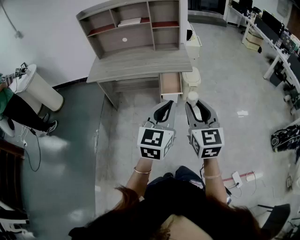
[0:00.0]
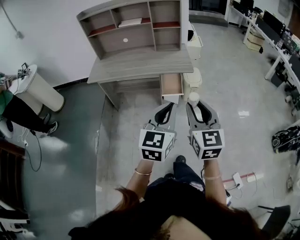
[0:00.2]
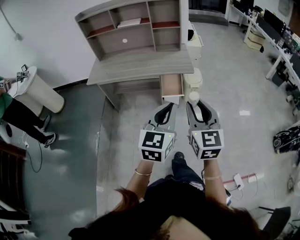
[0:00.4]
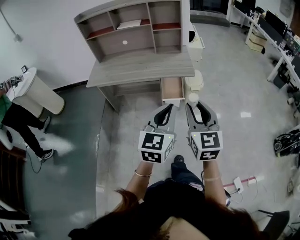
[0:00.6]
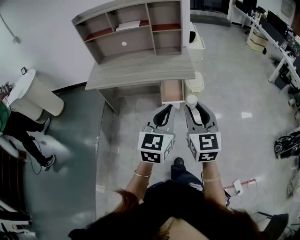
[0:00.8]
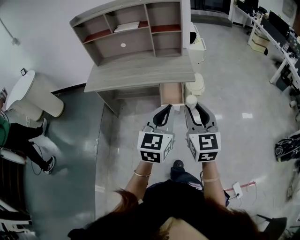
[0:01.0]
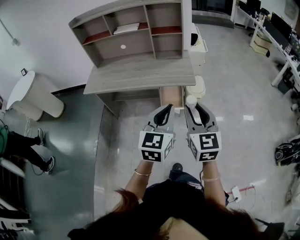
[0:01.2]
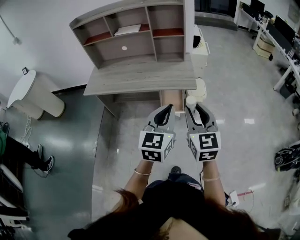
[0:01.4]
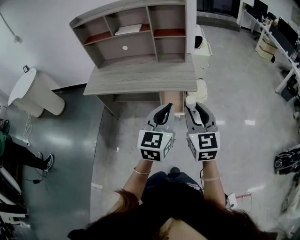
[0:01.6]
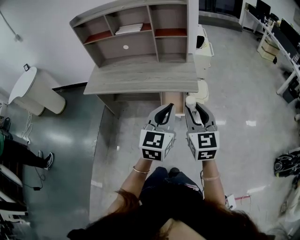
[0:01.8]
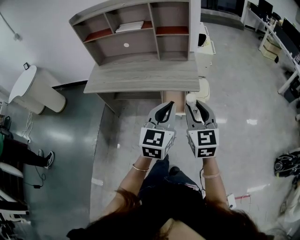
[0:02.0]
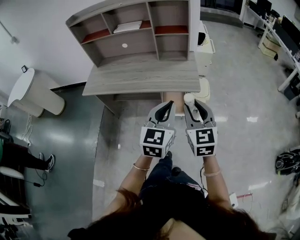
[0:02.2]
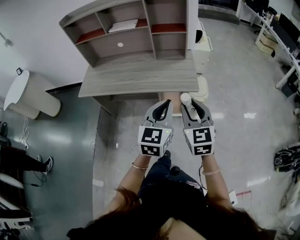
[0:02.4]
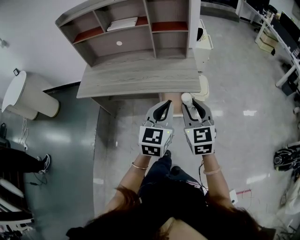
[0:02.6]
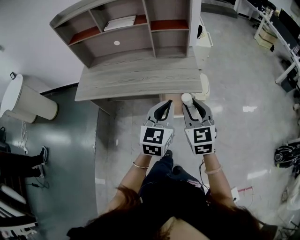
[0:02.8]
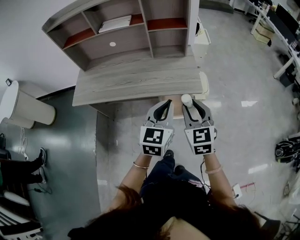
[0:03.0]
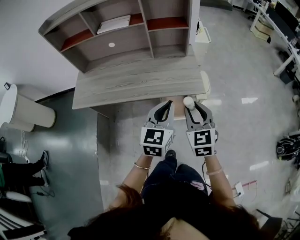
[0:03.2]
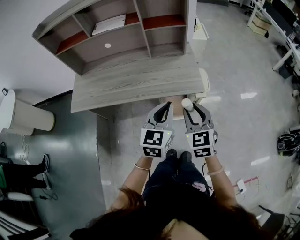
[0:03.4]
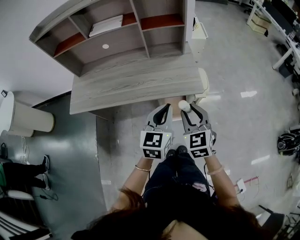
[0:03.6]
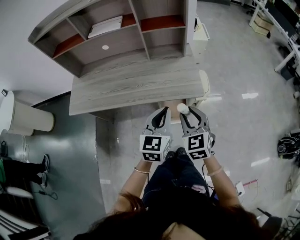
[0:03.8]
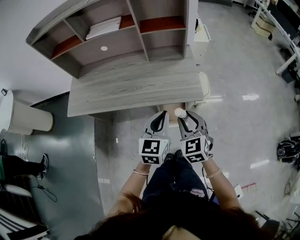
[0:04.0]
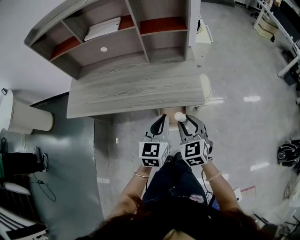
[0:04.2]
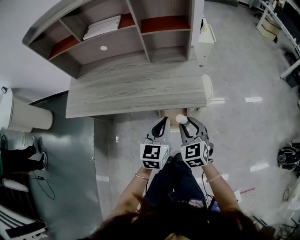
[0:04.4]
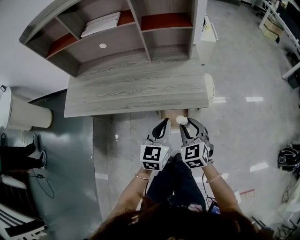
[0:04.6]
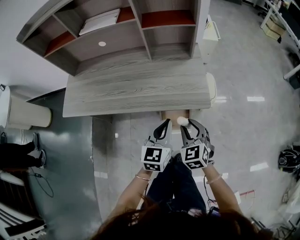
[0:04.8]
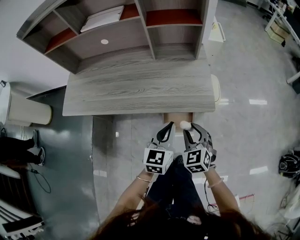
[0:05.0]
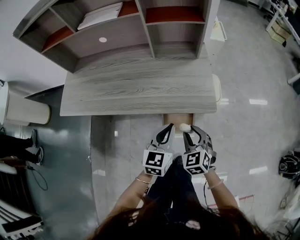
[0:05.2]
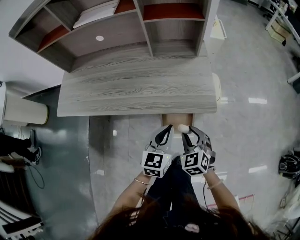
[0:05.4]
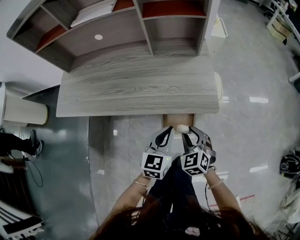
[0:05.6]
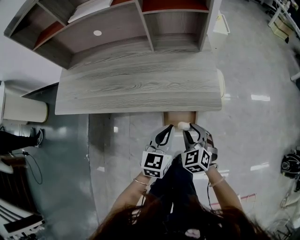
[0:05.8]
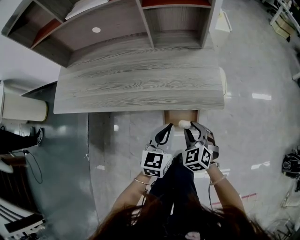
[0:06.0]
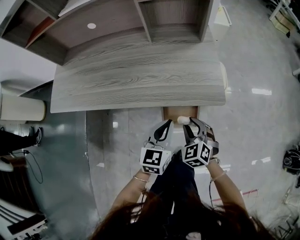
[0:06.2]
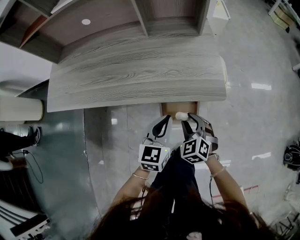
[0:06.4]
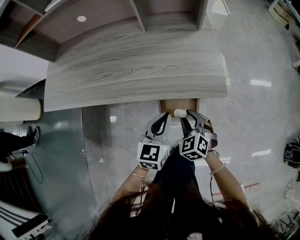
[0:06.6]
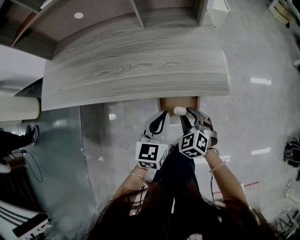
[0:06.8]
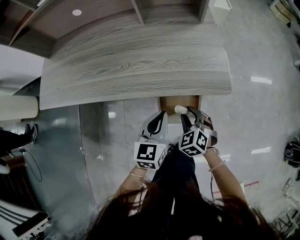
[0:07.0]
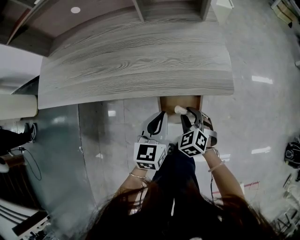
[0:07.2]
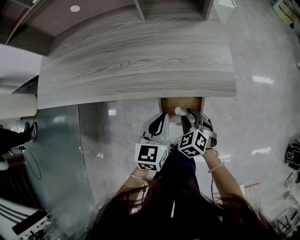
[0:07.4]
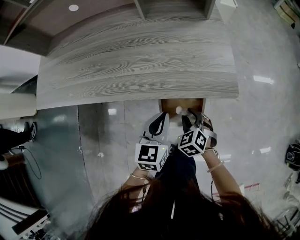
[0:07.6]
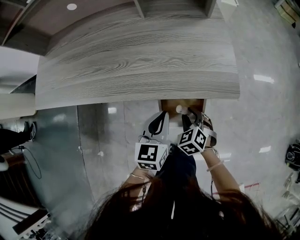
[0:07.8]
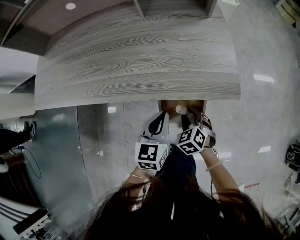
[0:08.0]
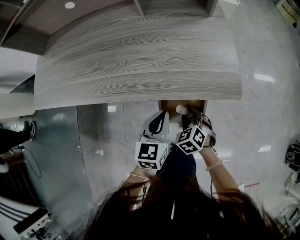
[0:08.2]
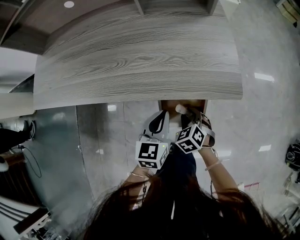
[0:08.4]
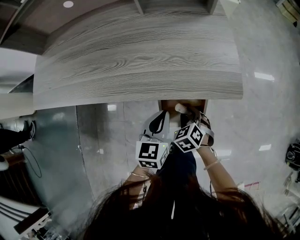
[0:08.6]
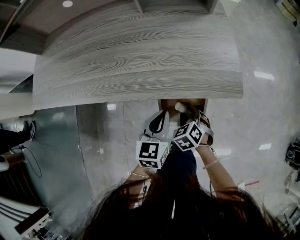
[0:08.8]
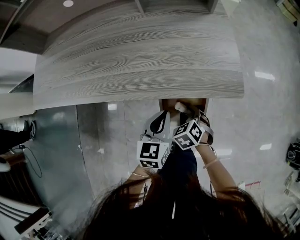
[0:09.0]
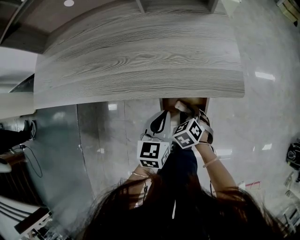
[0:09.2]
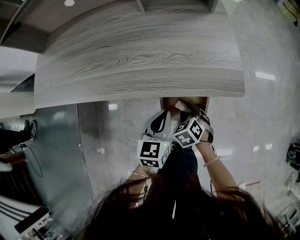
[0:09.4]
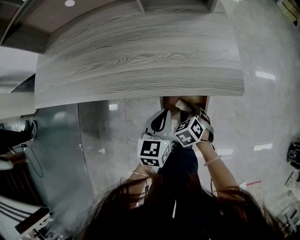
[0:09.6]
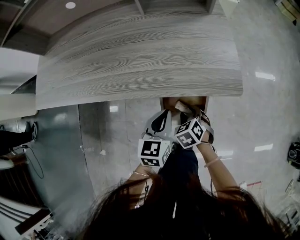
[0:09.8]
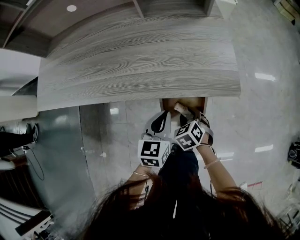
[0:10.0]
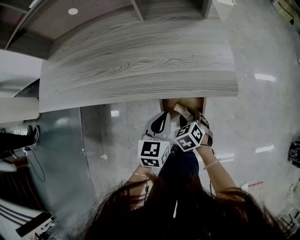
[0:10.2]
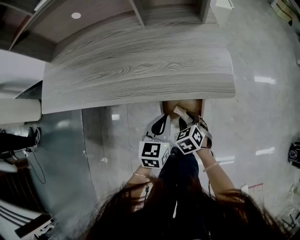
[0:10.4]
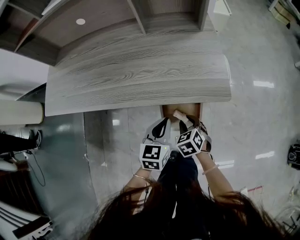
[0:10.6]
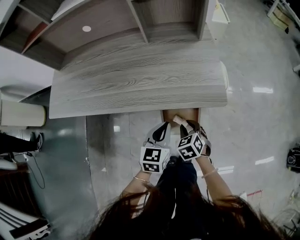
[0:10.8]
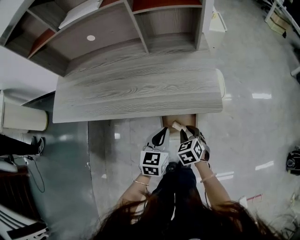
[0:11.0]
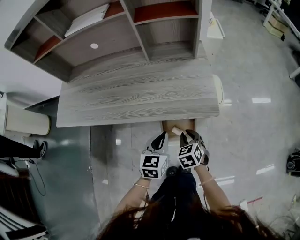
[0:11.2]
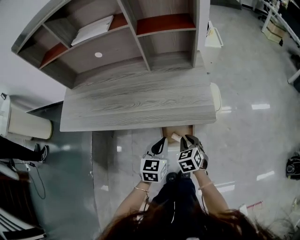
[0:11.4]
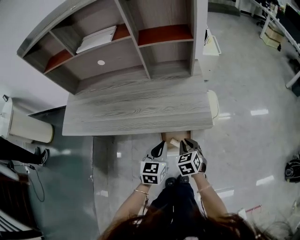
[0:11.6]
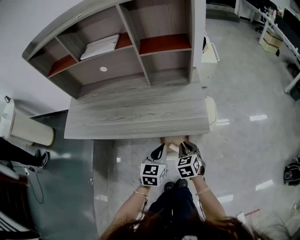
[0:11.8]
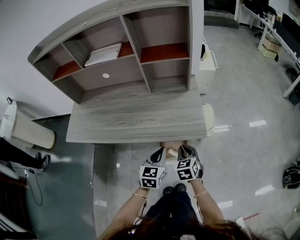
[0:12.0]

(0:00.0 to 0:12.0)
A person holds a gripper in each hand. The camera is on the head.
0:00.0 - 0:01.6: Both grippers travel together forward, approximately 20 cm.
0:01.6 - 0:03.0: The two grippers go roughly 15 cm forward and downward.
0:03.0 - 0:04.4: Both grippers travel together downward and forward, about 15 cm.
0:04.4 - 0:06.0: The grippers both shift downward by some 15 cm.
0:06.0 - 0:07.6: The left gripper heads downward, covering some 10 cm. The right gripper is displaced downward by some 15 cm.
0:07.6 - 0:10.4: The grippers move only a little.
0:10.4 - 0:12.0: Both grippers move upward, approximately 20 cm. The right gripper turns by approximately 20 degrees, and closes.

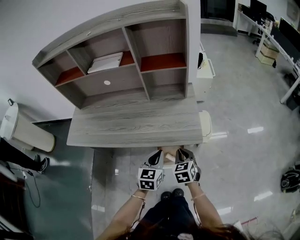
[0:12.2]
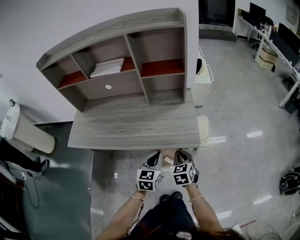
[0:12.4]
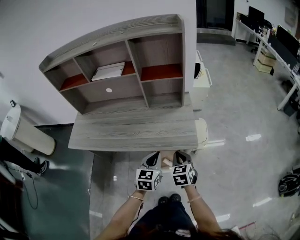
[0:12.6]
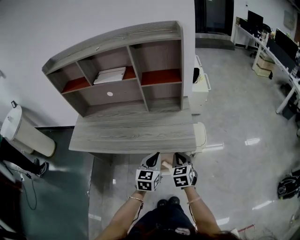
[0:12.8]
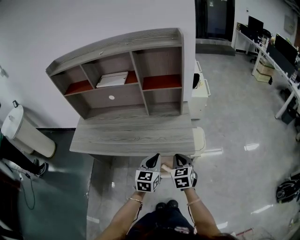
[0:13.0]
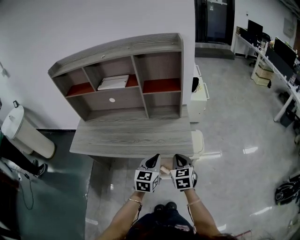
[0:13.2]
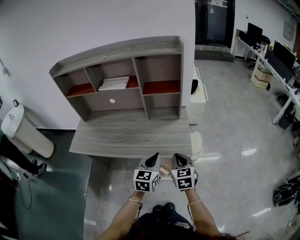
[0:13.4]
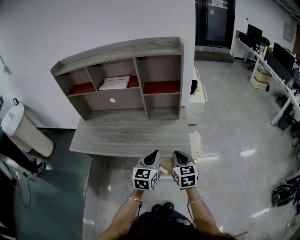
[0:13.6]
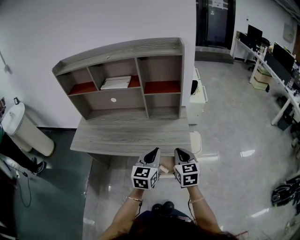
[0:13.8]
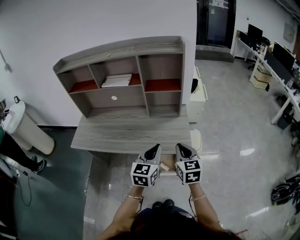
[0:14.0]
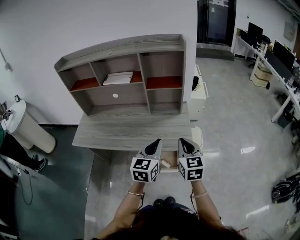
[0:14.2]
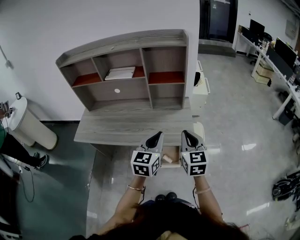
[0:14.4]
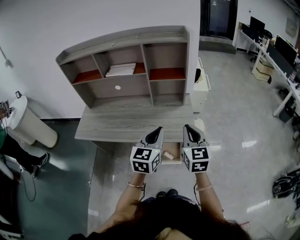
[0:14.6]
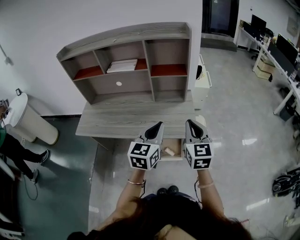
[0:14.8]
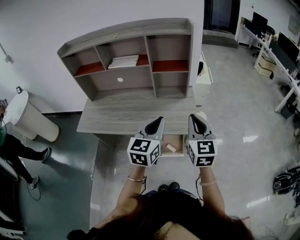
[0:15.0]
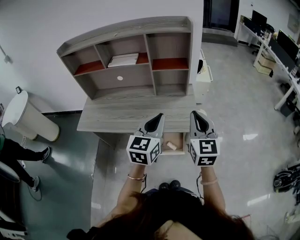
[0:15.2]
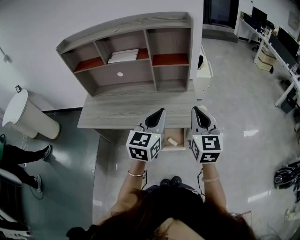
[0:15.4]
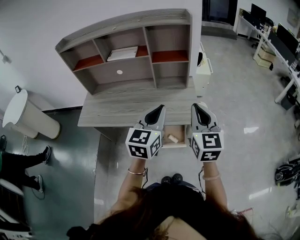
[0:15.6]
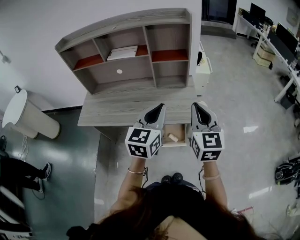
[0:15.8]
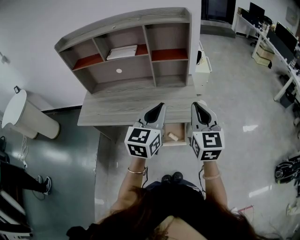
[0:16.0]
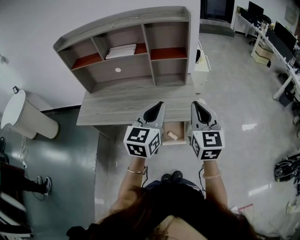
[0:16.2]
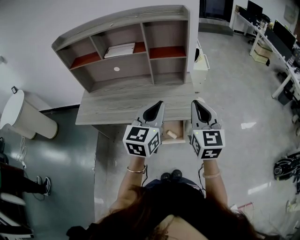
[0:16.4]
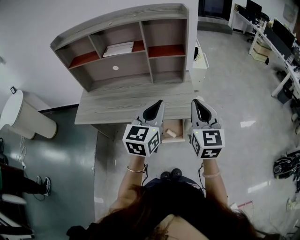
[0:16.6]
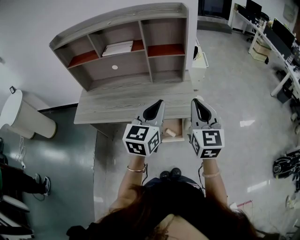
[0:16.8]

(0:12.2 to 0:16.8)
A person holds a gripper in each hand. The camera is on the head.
0:12.2 - 0:13.8: Both grippers move upward, roughly 20 cm.
0:13.8 - 0:15.2: The two grippers go some 10 cm upward.
0:15.2 - 0:16.8: The grippers move only a little.

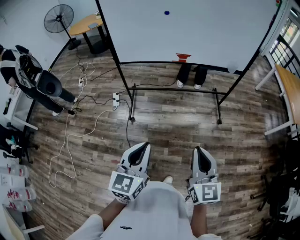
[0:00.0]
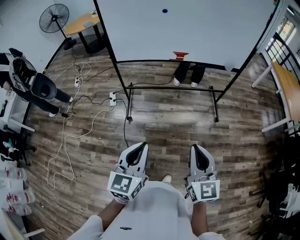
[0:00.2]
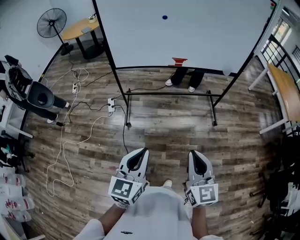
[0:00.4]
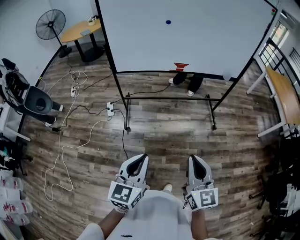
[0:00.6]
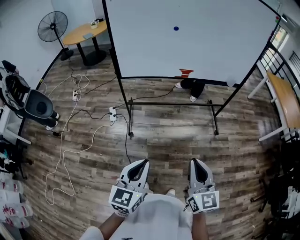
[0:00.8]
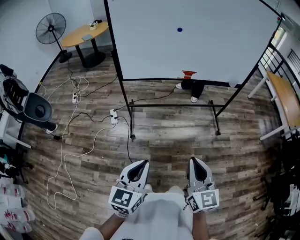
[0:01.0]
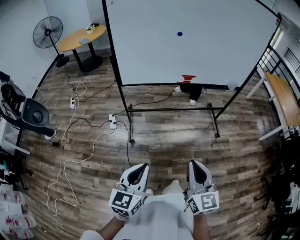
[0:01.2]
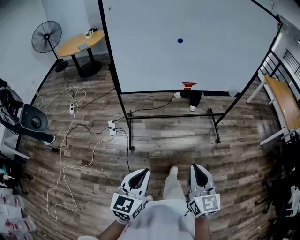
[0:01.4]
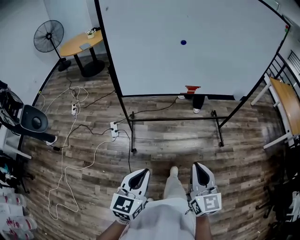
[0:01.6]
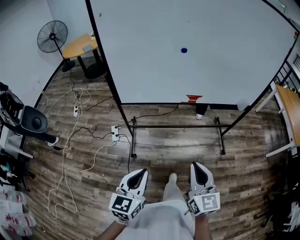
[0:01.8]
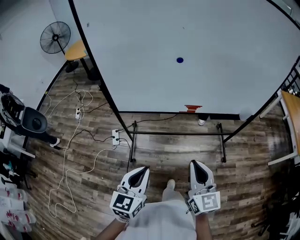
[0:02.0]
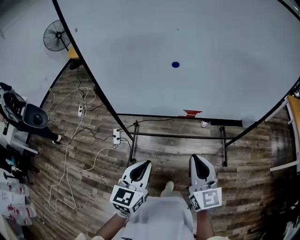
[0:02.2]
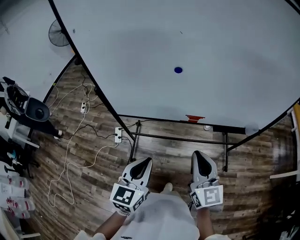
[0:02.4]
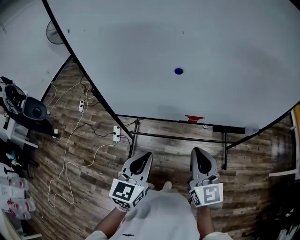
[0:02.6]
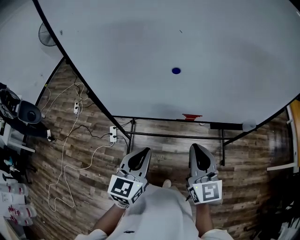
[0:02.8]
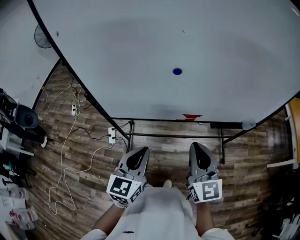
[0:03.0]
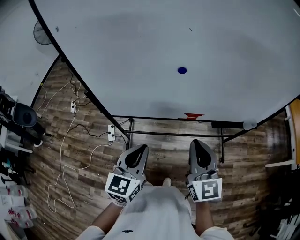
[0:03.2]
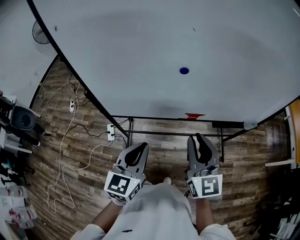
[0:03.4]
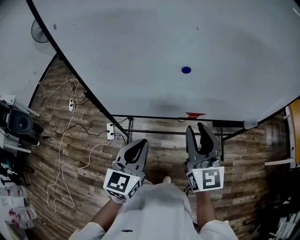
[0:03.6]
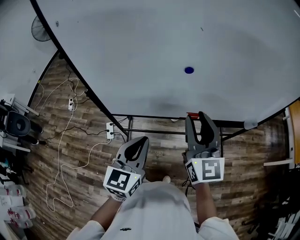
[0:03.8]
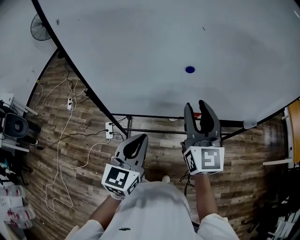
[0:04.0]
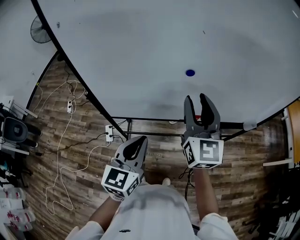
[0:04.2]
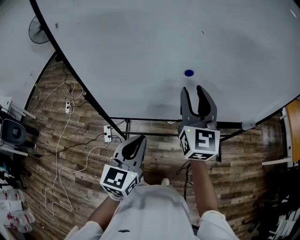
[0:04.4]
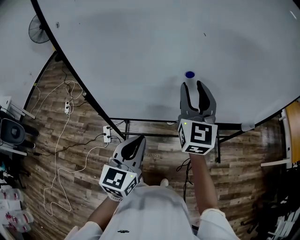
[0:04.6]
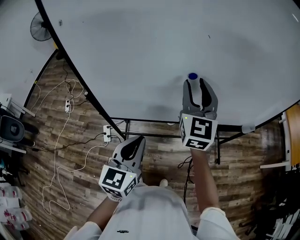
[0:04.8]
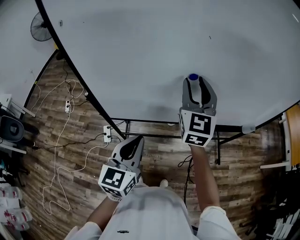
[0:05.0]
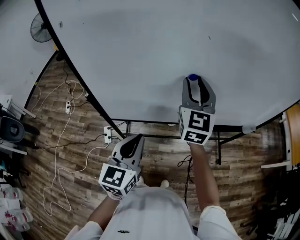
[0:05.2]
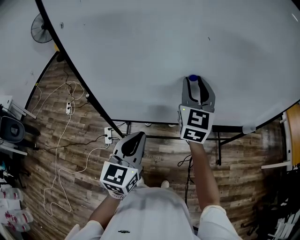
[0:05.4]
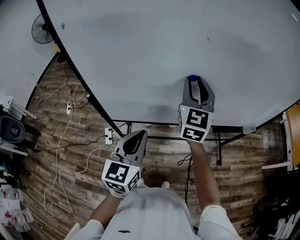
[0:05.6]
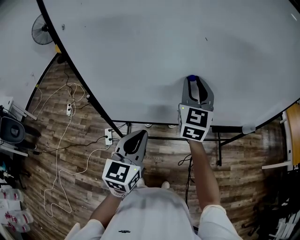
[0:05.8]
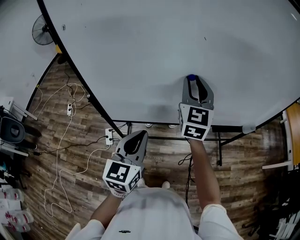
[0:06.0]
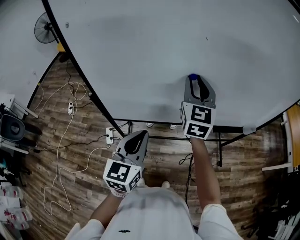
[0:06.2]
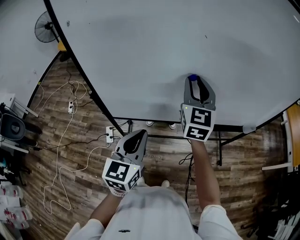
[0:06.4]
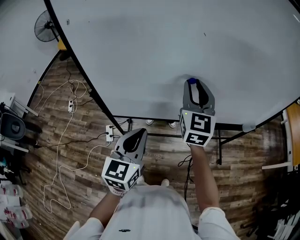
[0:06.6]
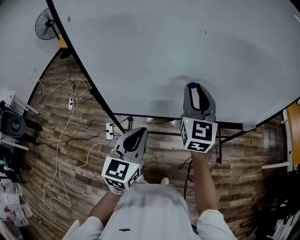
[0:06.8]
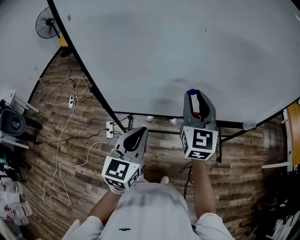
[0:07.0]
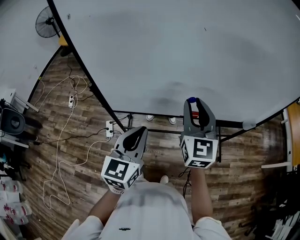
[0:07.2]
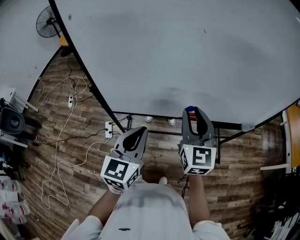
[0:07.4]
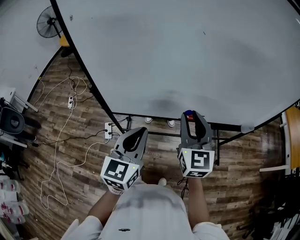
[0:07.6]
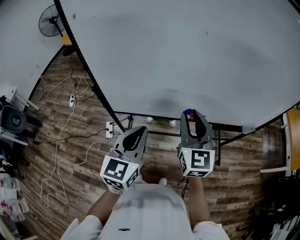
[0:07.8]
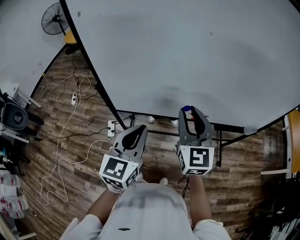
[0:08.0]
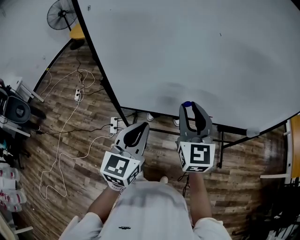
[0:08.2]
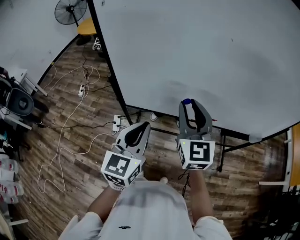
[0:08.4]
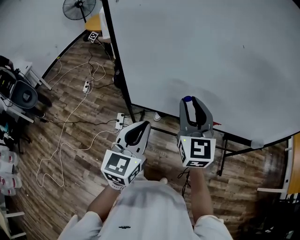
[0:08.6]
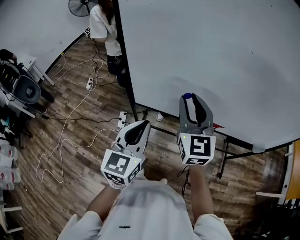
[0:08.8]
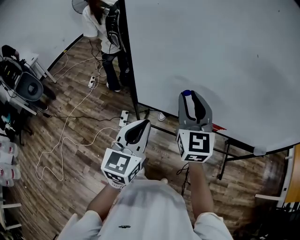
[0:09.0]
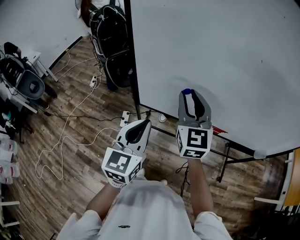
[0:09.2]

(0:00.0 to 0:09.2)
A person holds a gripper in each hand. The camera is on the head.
0:00.0 - 0:01.6: The left gripper shifts some 20 cm to the left and forward, while the right gripper travels forward and to the left by about 20 cm.
0:01.6 - 0:03.0: Both grippers move forward, some 30 cm.
0:03.0 - 0:04.6: The left gripper changes place by roughly 5 cm, while the right gripper is displaced forward, upward and to the left by some 20 cm, and opens up.
0:04.6 - 0:06.2: The grippers stay close to where they were, moving slightly.
0:06.2 - 0:07.6: The right gripper travels backward and downward by approximately 15 cm.
0:07.6 - 0:09.2: The two grippers go roughly 15 cm to the left.
